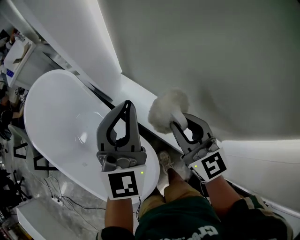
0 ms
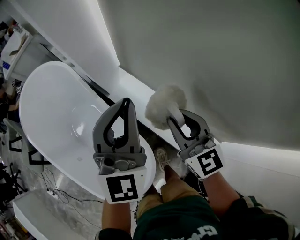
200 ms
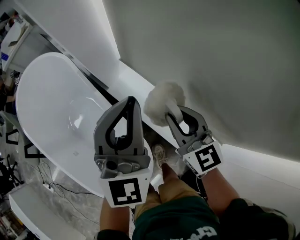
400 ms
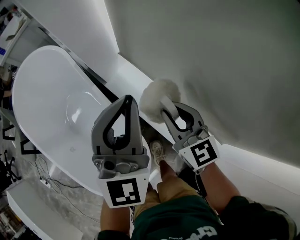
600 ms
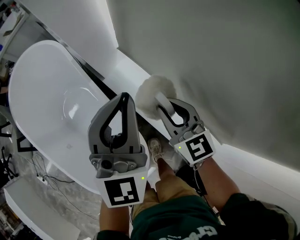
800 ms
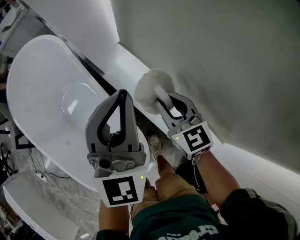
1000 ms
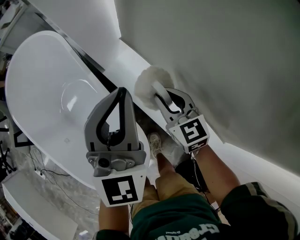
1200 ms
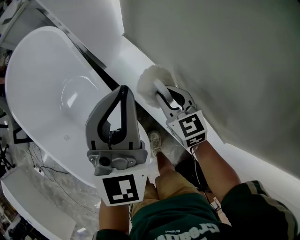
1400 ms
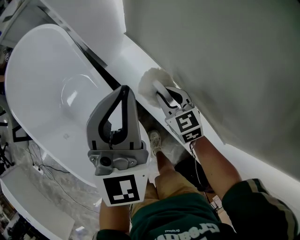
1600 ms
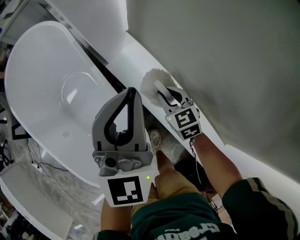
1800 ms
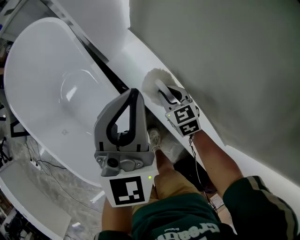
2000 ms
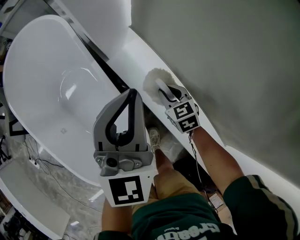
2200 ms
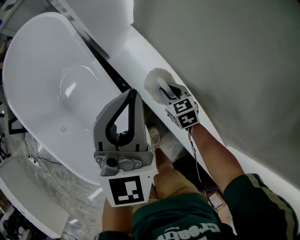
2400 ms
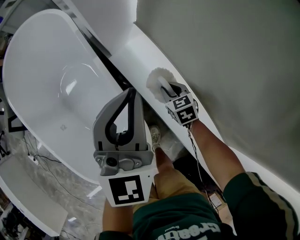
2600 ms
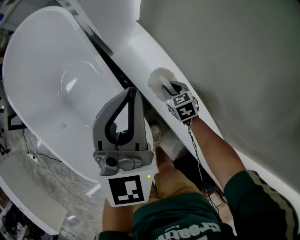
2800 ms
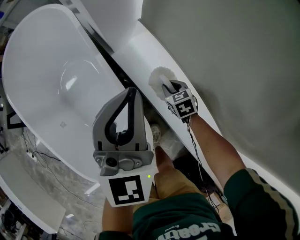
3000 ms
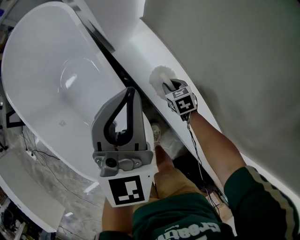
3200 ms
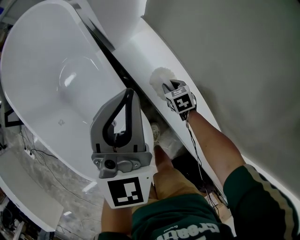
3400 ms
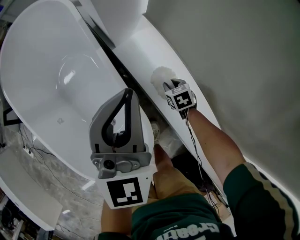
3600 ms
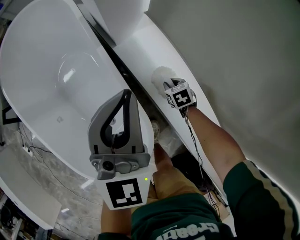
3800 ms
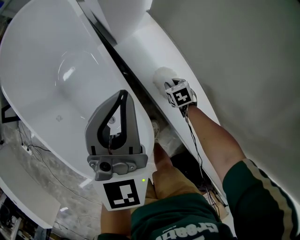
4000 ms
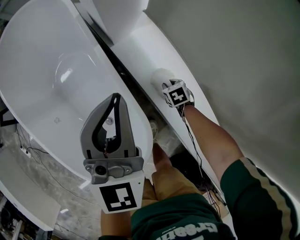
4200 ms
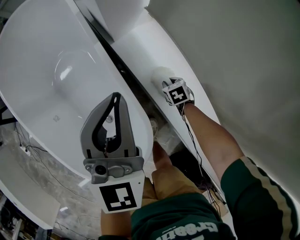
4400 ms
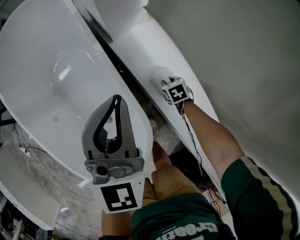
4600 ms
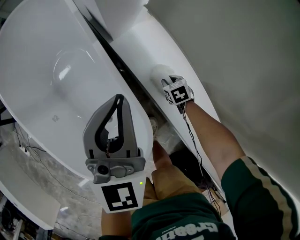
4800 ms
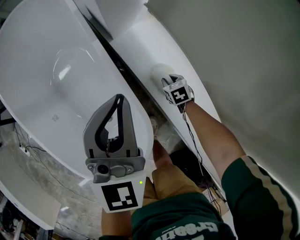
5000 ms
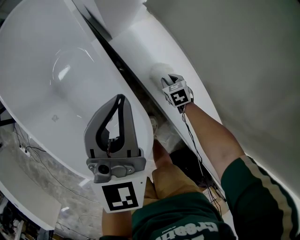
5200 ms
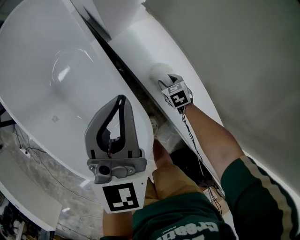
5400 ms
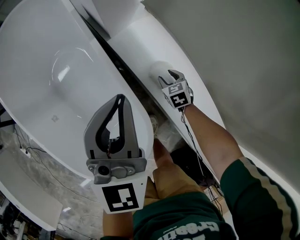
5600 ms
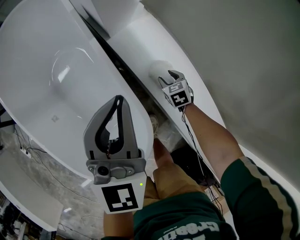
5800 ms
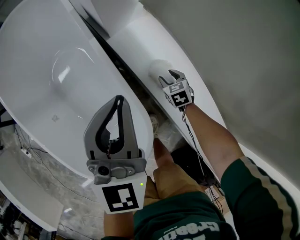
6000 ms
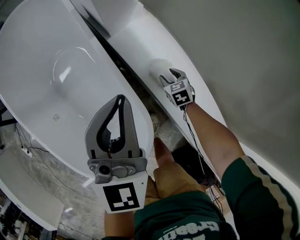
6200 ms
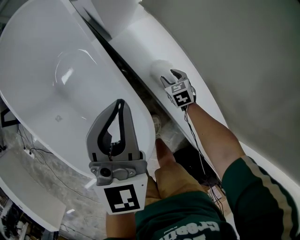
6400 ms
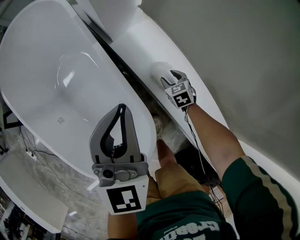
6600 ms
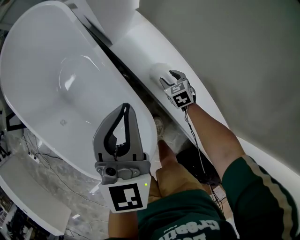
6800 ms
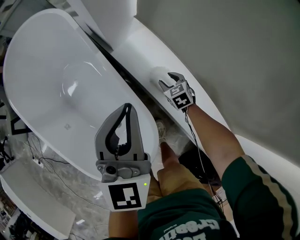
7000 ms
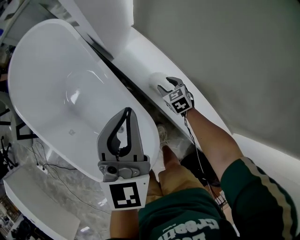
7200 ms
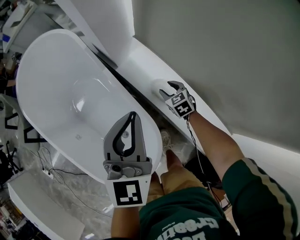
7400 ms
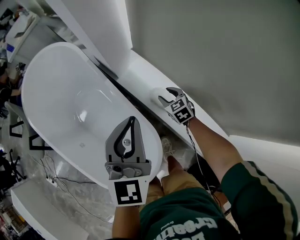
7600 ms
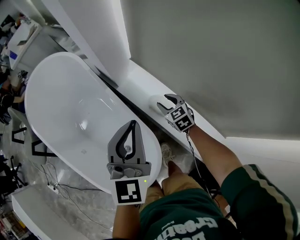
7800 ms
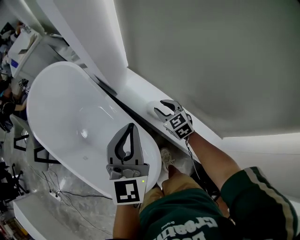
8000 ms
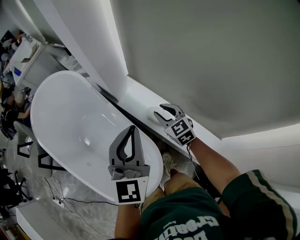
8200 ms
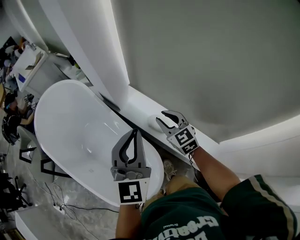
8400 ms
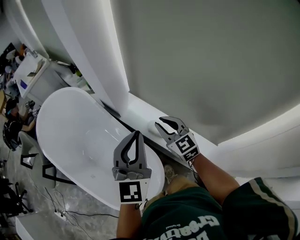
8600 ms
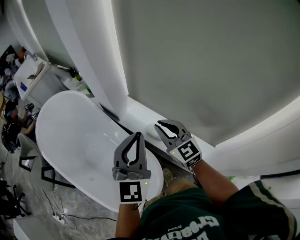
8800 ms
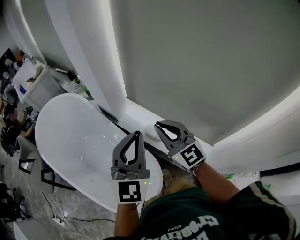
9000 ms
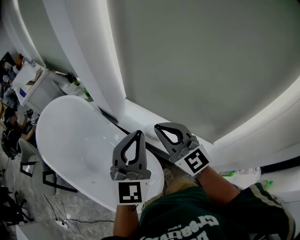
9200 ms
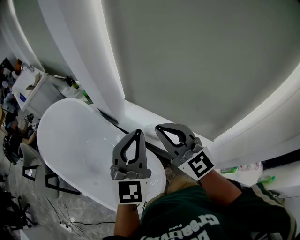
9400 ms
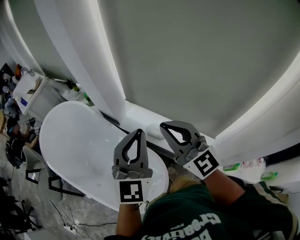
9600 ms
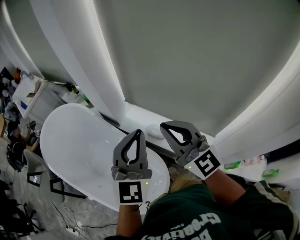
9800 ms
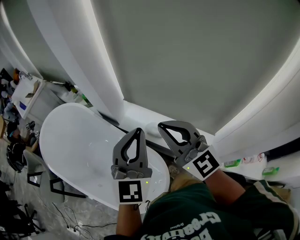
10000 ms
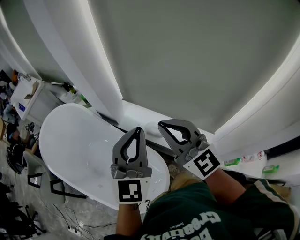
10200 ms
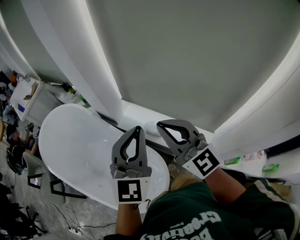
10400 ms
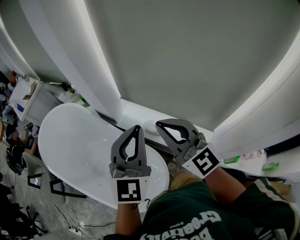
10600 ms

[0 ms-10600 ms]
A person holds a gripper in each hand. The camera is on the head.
0 ms to 1600 ms: The left gripper moves downward, roughly 15 cm. The right gripper shifts some 30 cm downward, and changes its angle by roughly 30 degrees.
1600 ms to 3000 ms: The right gripper goes approximately 15 cm downward, and rotates about 20 degrees, while the left gripper shifts by some 5 cm.
3000 ms to 4600 ms: The right gripper is displaced downward by approximately 10 cm; the left gripper ends up roughly 5 cm from where it was.
4600 ms to 6000 ms: The right gripper opens up.
6000 ms to 7600 ms: The left gripper moves upward and backward, about 15 cm. The right gripper moves upward, roughly 20 cm.
7600 ms to 9000 ms: The right gripper moves upward, approximately 40 cm, tilts its fingers some 40 degrees upward, and closes, while the left gripper is displaced upward and backward by roughly 15 cm.
9000 ms to 10600 ms: The right gripper is displaced upward and backward by approximately 10 cm.

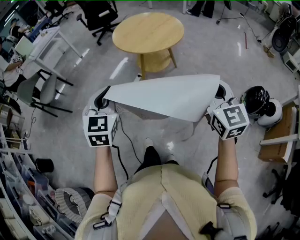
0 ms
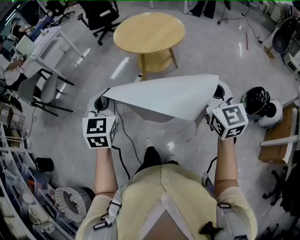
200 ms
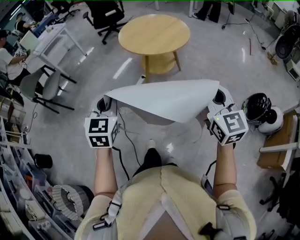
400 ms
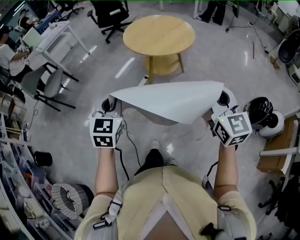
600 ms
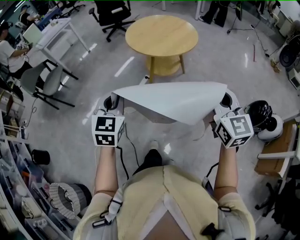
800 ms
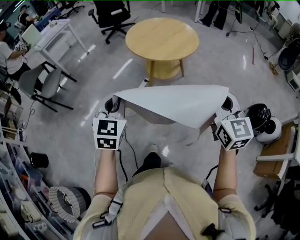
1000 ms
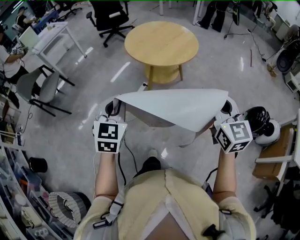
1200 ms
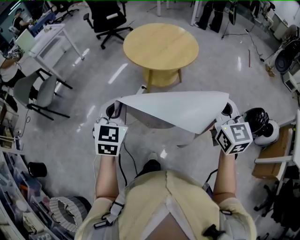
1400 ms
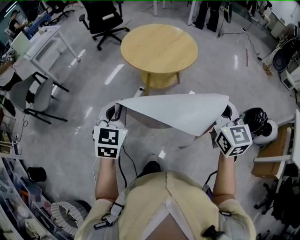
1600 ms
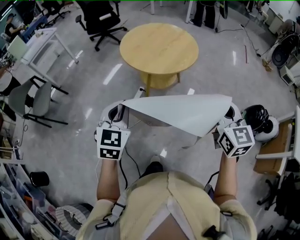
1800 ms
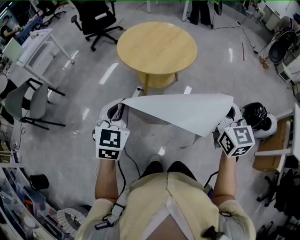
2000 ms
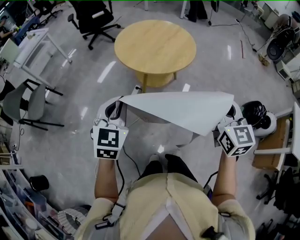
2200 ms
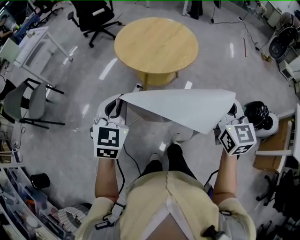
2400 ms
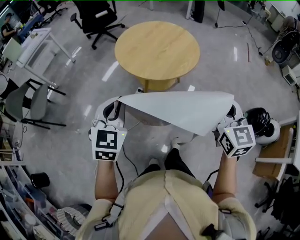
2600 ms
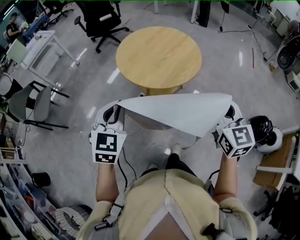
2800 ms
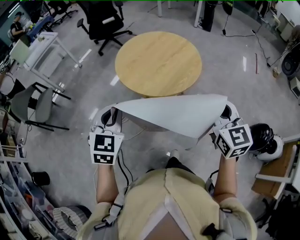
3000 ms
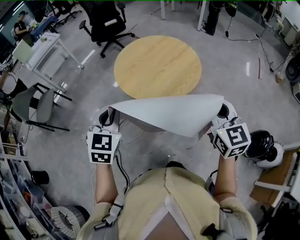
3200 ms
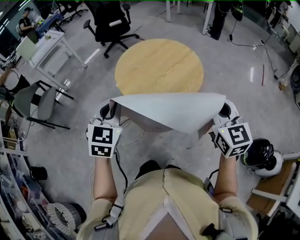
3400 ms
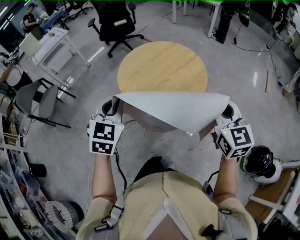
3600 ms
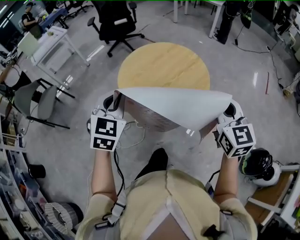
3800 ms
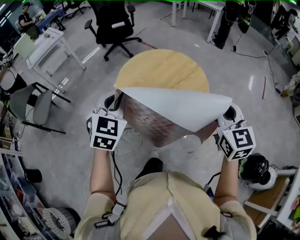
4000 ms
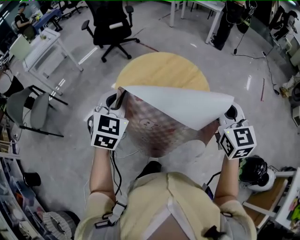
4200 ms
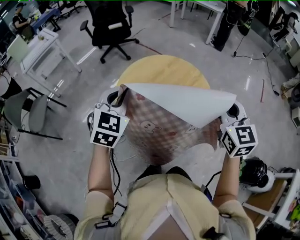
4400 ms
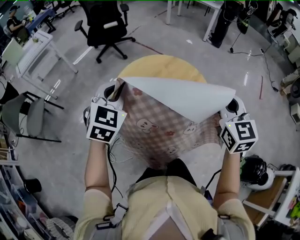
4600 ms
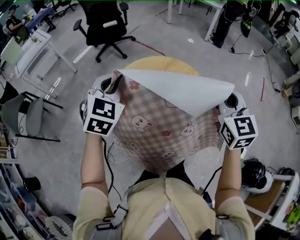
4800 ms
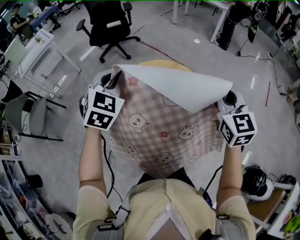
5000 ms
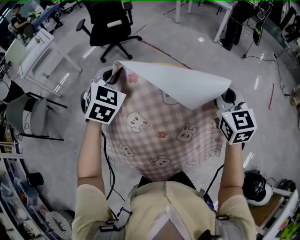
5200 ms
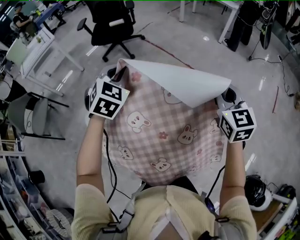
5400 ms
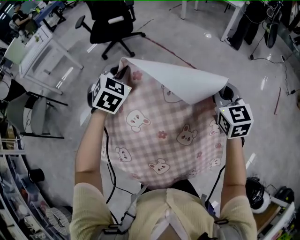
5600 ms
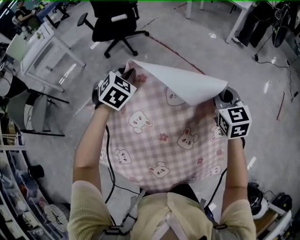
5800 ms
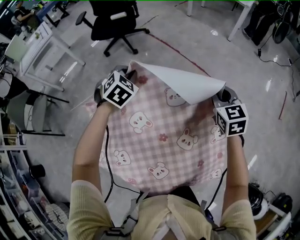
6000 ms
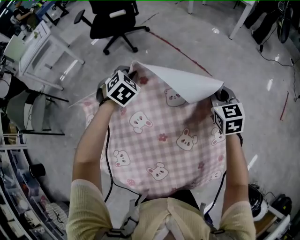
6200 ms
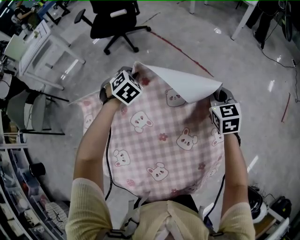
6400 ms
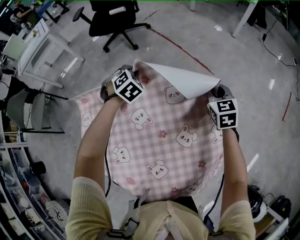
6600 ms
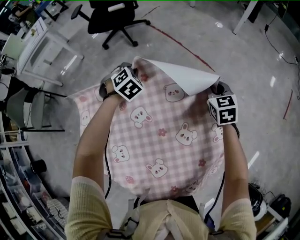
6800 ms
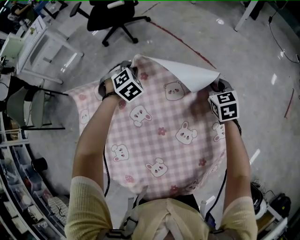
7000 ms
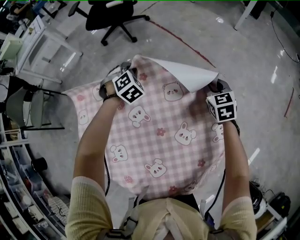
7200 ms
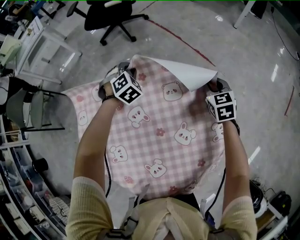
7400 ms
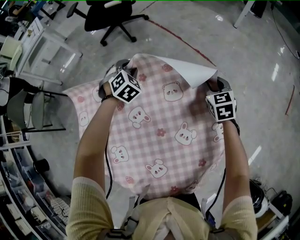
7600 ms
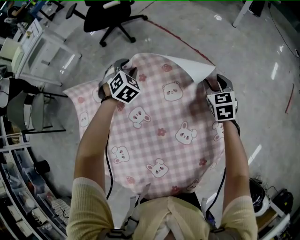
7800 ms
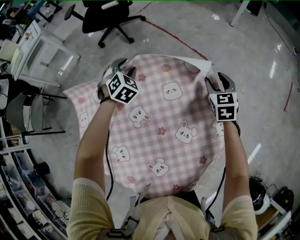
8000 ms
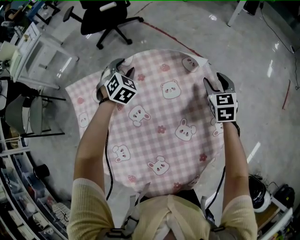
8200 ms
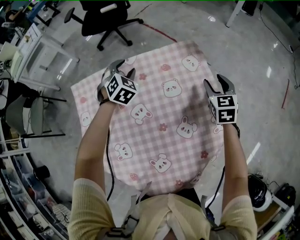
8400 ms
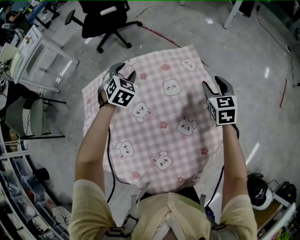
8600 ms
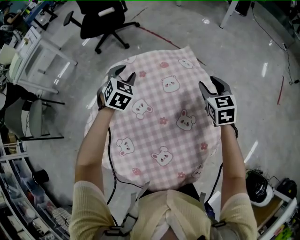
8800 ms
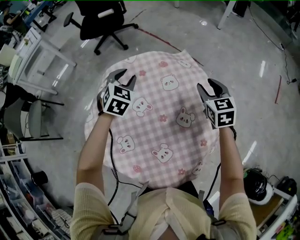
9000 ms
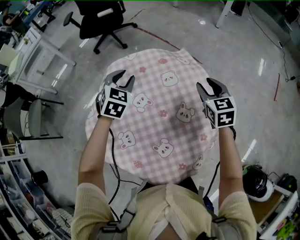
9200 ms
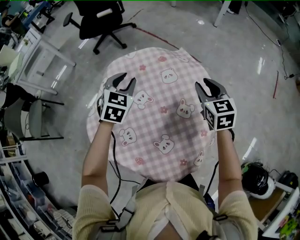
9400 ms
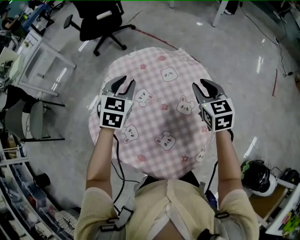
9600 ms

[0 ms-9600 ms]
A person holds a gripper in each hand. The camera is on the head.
0 ms to 1600 ms: Both grippers move forward and to the left, some 15 cm.
1600 ms to 3200 ms: The two grippers go roughly 20 cm forward.
3200 ms to 4800 ms: Both grippers travel together forward, some 35 cm.
4800 ms to 6400 ms: Both grippers move forward and downward, roughly 40 cm. The left gripper changes its angle by some 30 degrees; the right gripper swivels roughly 20 degrees.
6400 ms to 8000 ms: The right gripper opens. Meanwhile the left gripper opens.
8000 ms to 9600 ms: The left gripper is displaced backward and upward by roughly 20 cm, and changes its angle by about 30 degrees. The right gripper shifts about 20 cm backward, upward and to the left.

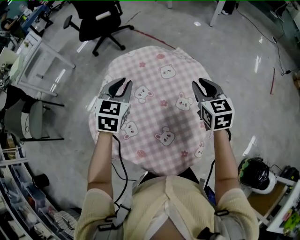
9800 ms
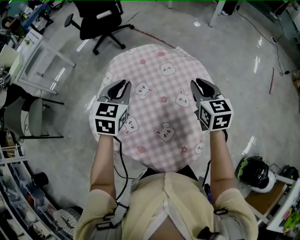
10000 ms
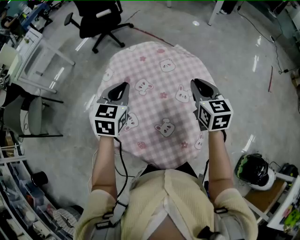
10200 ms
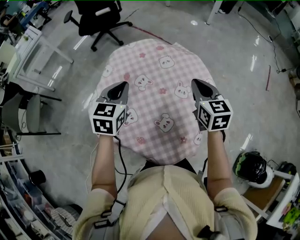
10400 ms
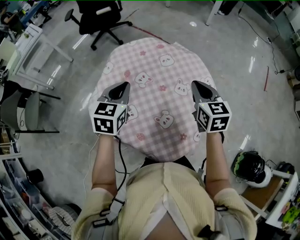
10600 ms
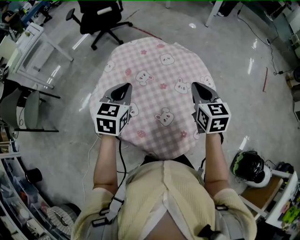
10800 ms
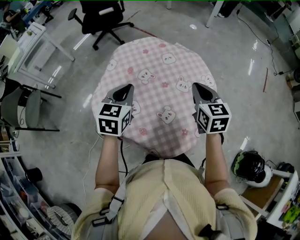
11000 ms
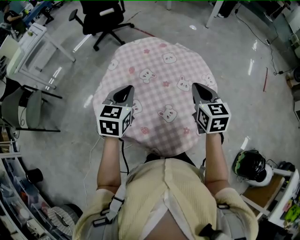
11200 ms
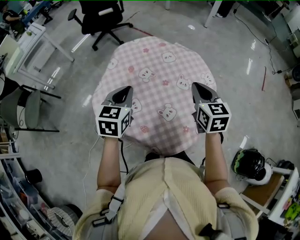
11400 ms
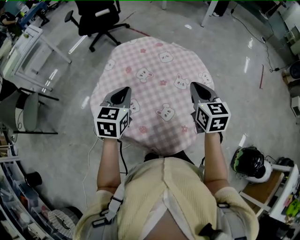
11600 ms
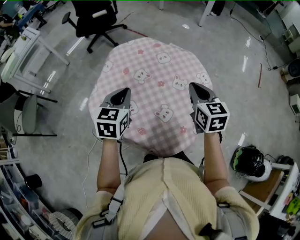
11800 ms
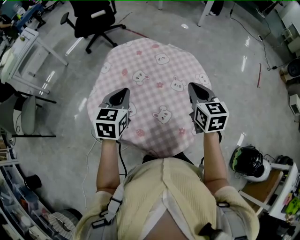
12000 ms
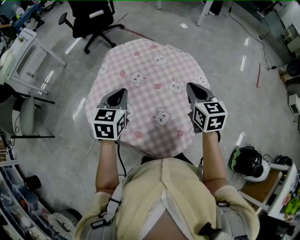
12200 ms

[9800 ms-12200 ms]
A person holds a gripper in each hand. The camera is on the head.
9800 ms to 11000 ms: Both grippers travel together backward, roughly 10 cm. The right gripper closes.
11000 ms to 12200 ms: The grippers move only a little.

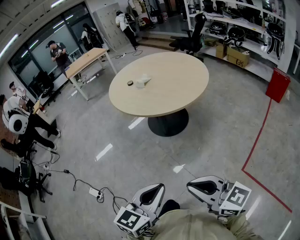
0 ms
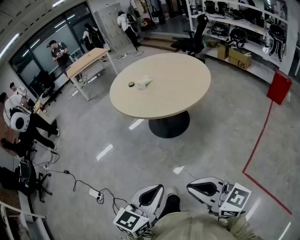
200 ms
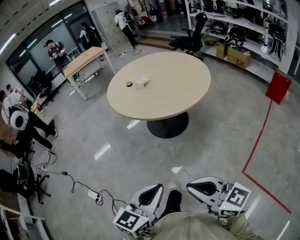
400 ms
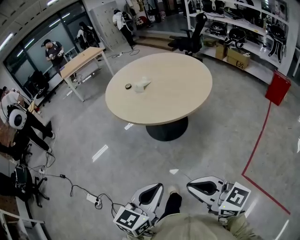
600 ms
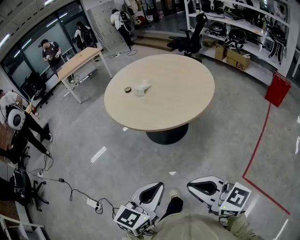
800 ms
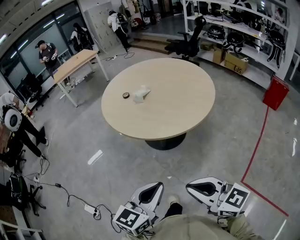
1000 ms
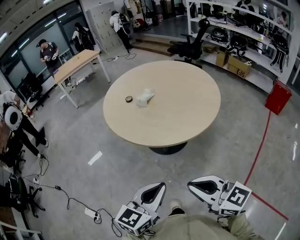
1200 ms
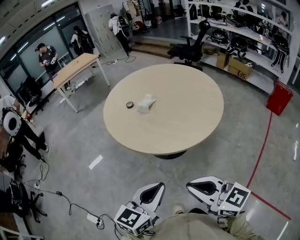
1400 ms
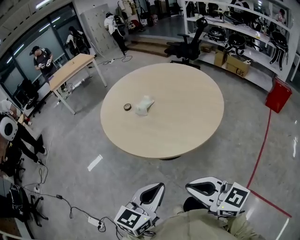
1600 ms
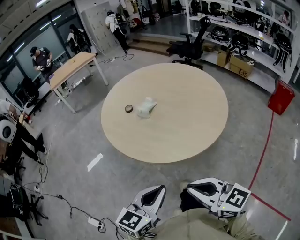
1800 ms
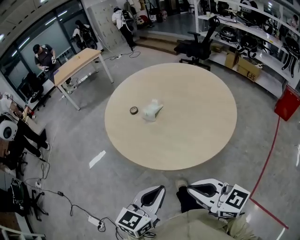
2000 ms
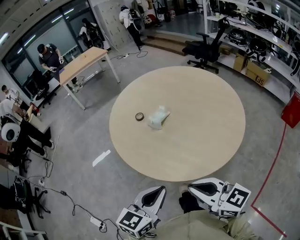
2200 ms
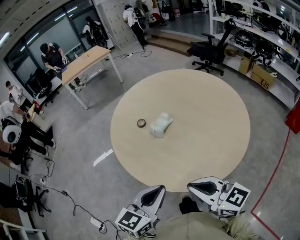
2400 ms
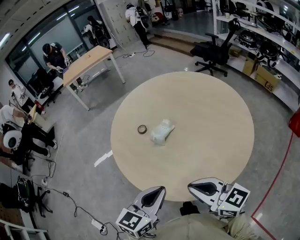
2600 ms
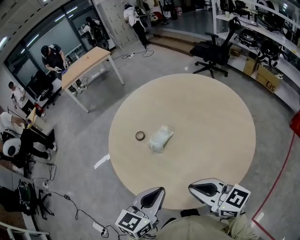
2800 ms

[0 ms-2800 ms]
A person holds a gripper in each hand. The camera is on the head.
0 ms to 1400 ms: The two grippers go some 30 cm forward.
1400 ms to 2800 ms: The grippers both shift forward by about 30 cm.
